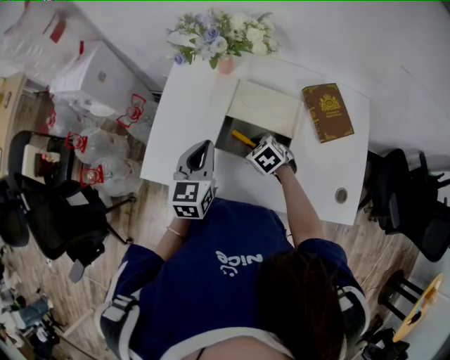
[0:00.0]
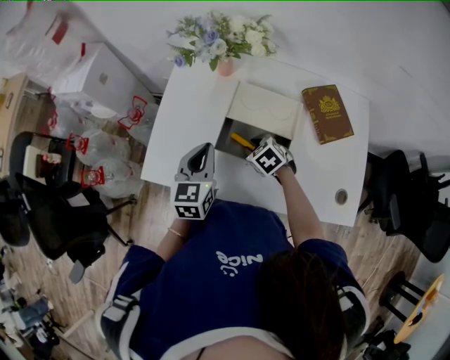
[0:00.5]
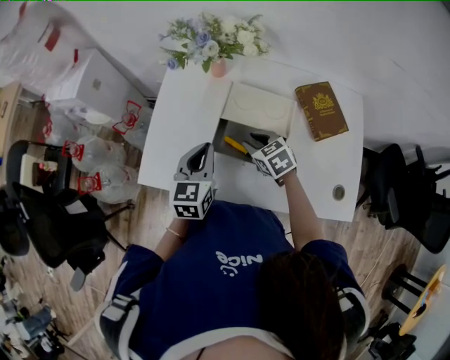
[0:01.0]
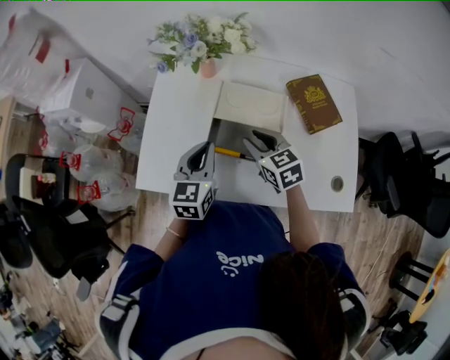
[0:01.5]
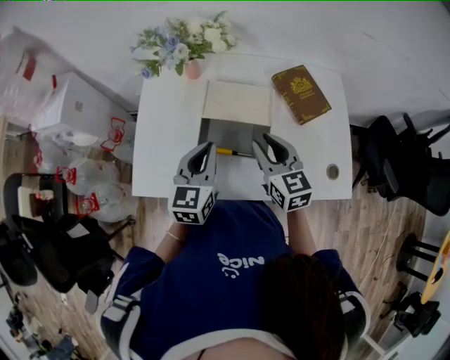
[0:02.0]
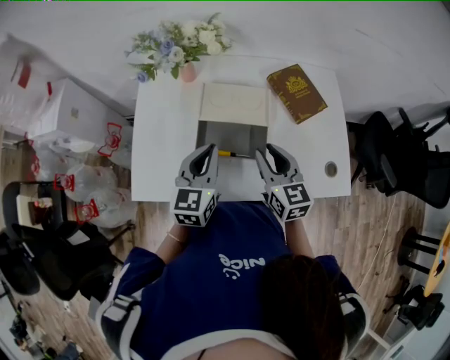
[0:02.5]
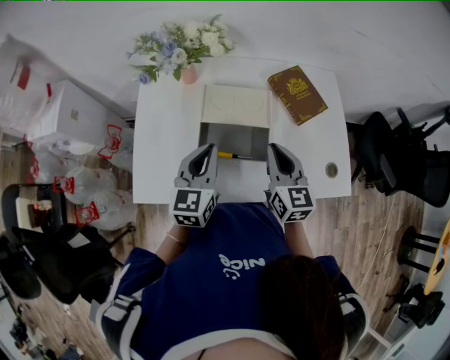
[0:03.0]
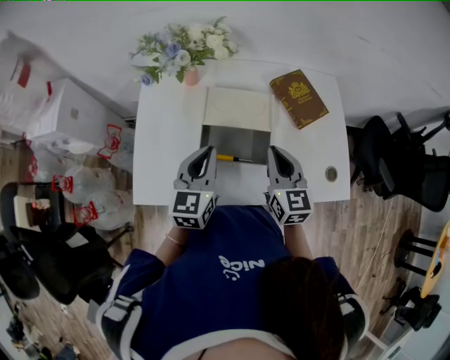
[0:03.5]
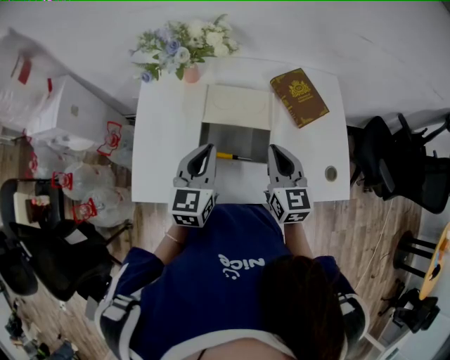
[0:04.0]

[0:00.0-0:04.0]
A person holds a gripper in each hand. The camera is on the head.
0:00.0 to 0:02.0: The left gripper travels to the right by roughly 5 cm, while the right gripper heads upward, covering roughly 20 cm, and points its fingers some 40 degrees further upward.
0:02.0 to 0:04.0: The right gripper closes.

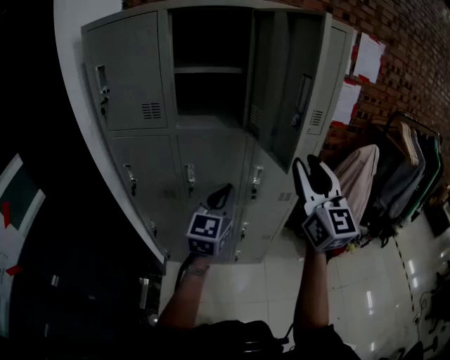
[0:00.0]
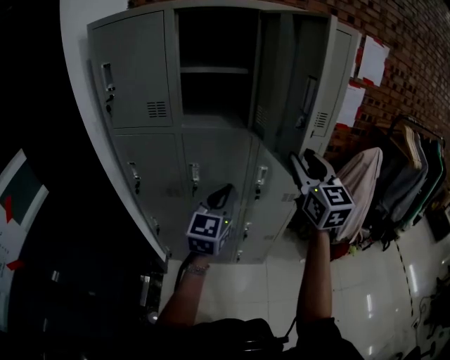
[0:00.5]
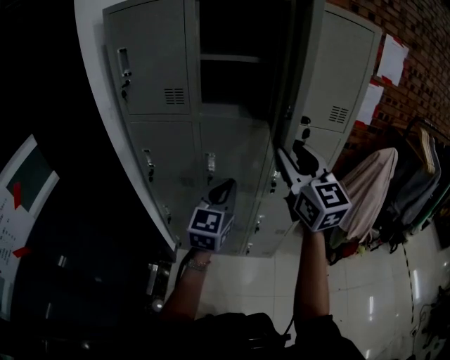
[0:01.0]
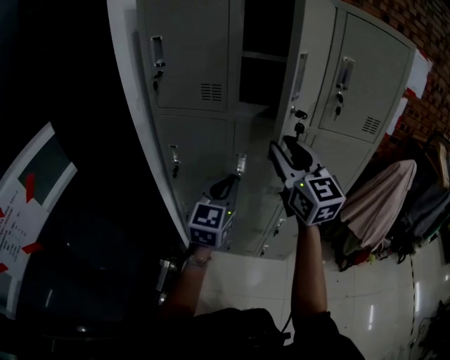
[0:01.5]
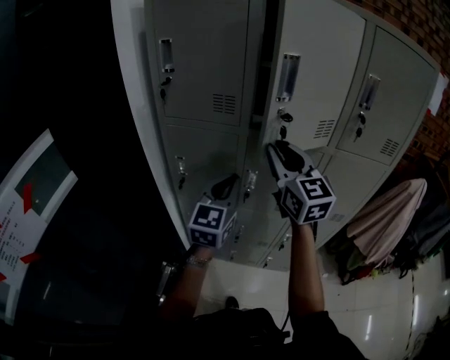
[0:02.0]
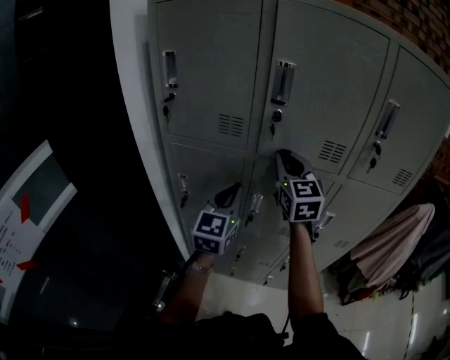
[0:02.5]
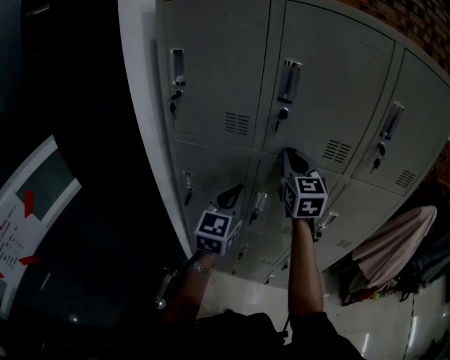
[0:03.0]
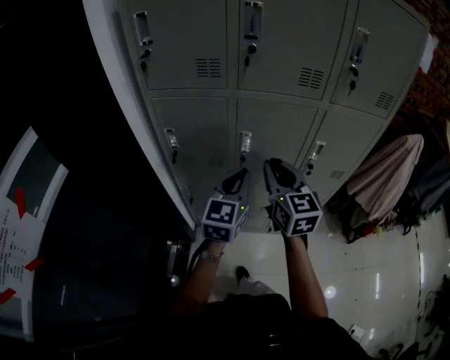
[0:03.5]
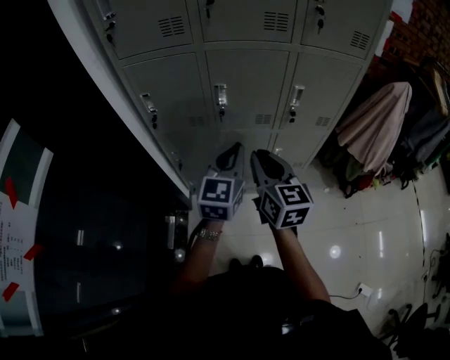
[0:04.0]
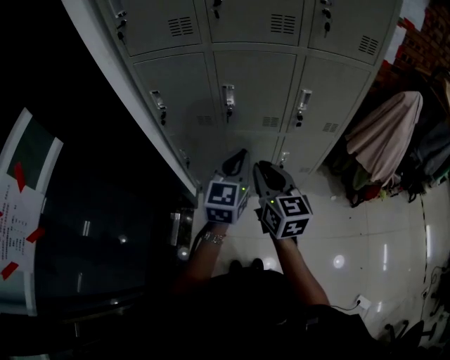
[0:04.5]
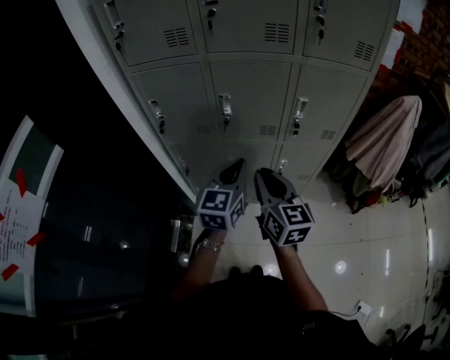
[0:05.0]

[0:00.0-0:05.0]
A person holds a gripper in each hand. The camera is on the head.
0:00.0 to 0:02.5: The left gripper goes approximately 25 cm to the left and forward, while the right gripper goes roughly 40 cm forward and to the left, swivels about 20 degrees, and closes.
0:02.5 to 0:05.0: The right gripper travels backward and downward by roughly 35 cm, and changes its angle by approximately 30 degrees. The left gripper moves backward, downward and to the right, some 25 cm.

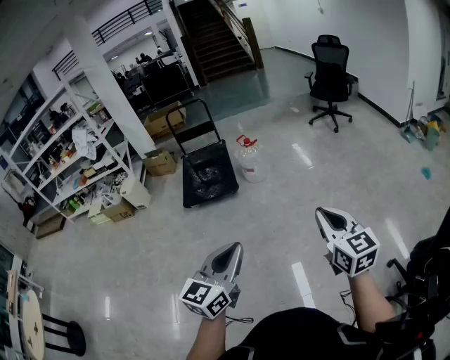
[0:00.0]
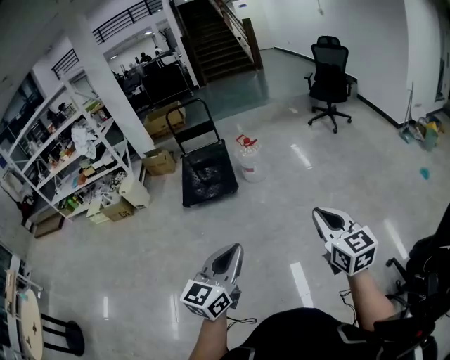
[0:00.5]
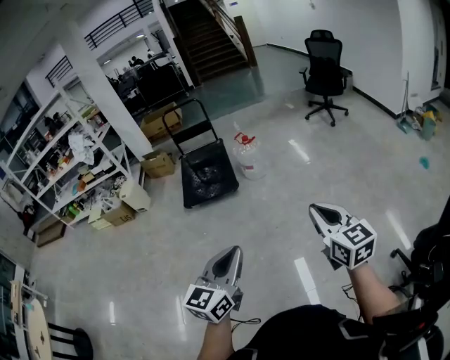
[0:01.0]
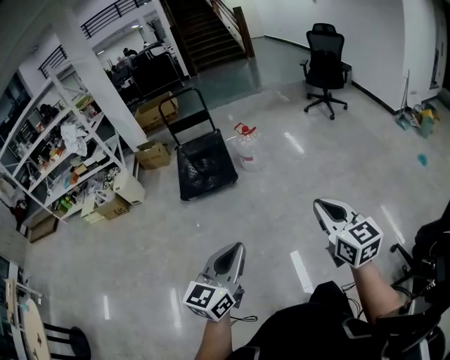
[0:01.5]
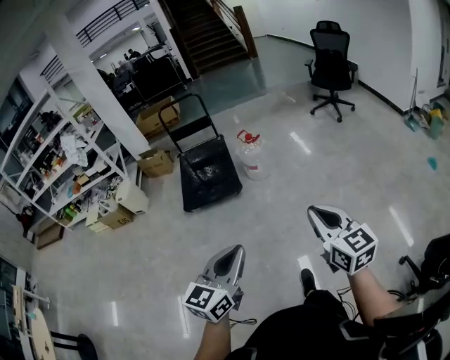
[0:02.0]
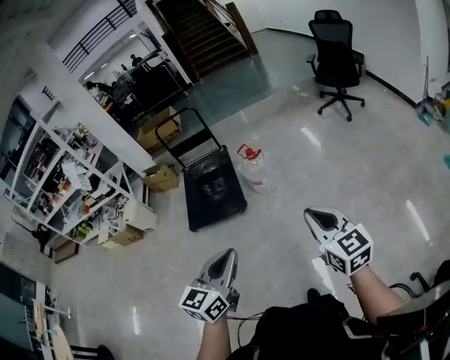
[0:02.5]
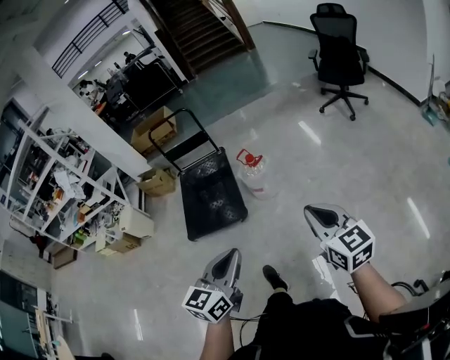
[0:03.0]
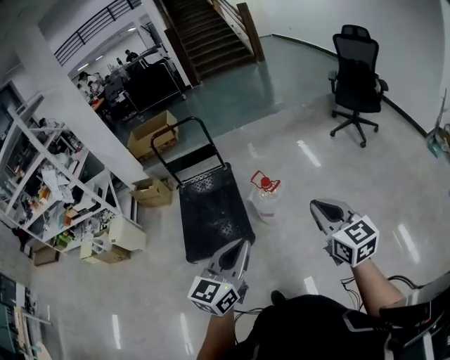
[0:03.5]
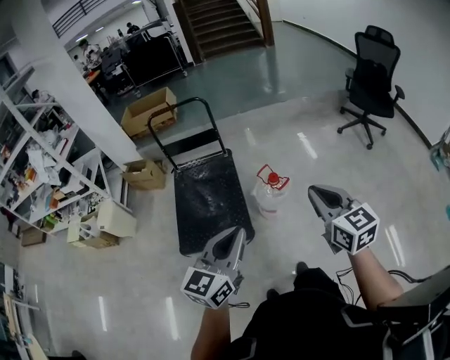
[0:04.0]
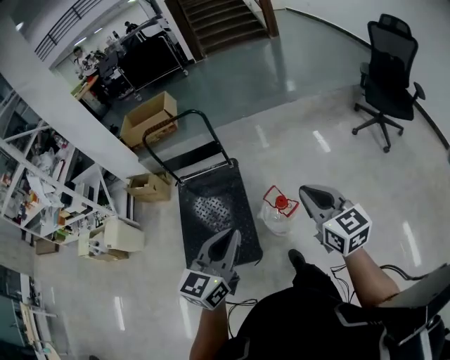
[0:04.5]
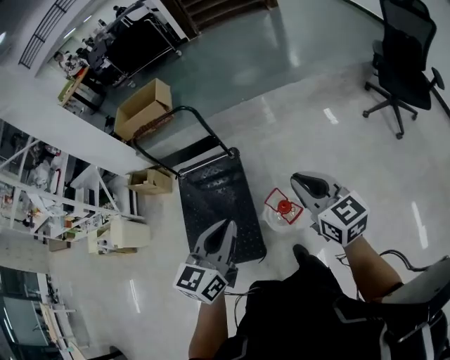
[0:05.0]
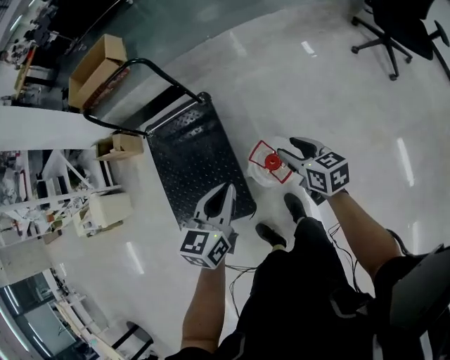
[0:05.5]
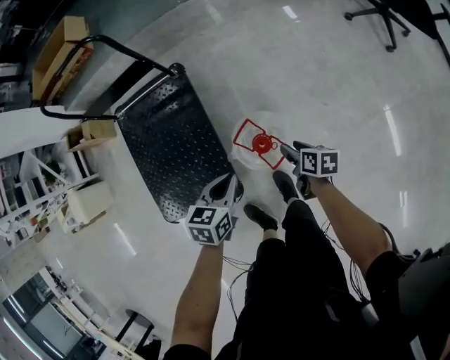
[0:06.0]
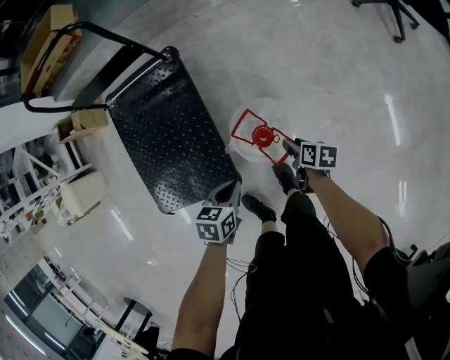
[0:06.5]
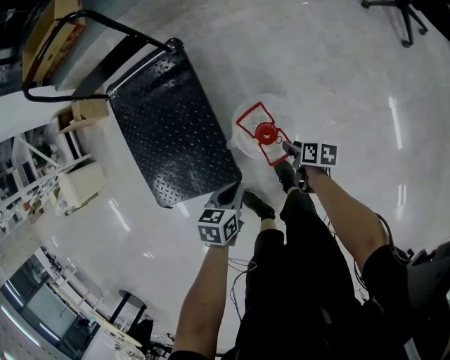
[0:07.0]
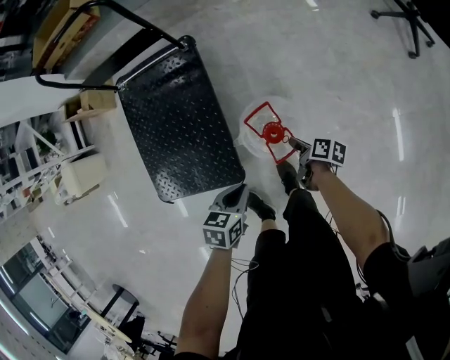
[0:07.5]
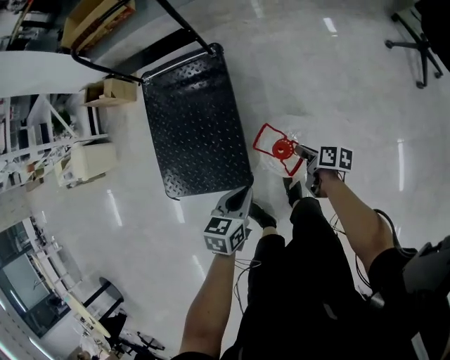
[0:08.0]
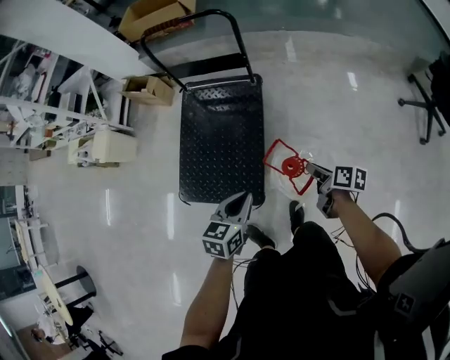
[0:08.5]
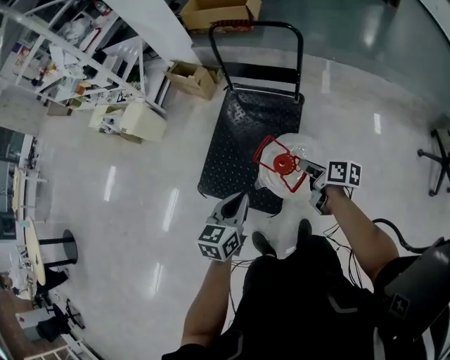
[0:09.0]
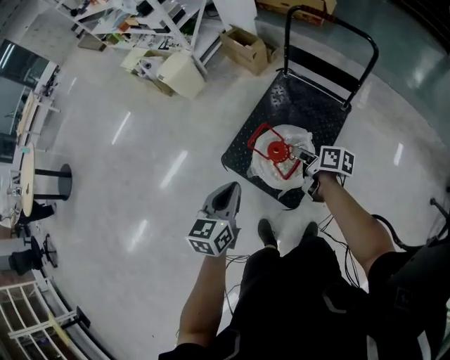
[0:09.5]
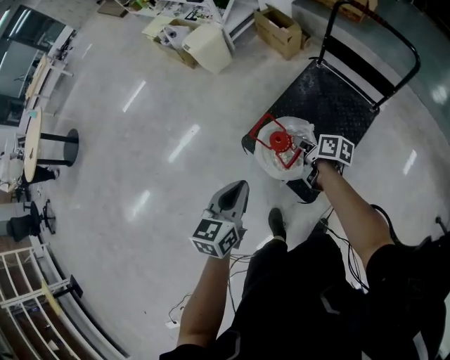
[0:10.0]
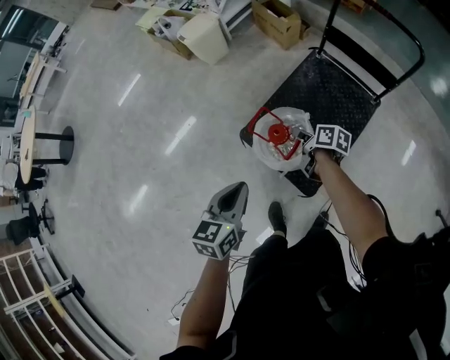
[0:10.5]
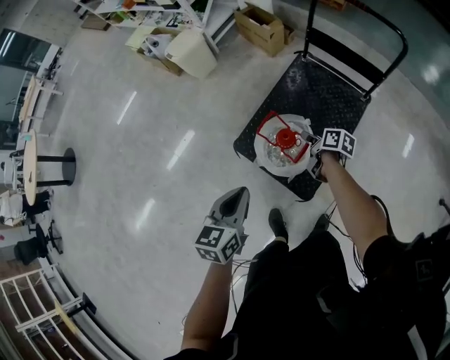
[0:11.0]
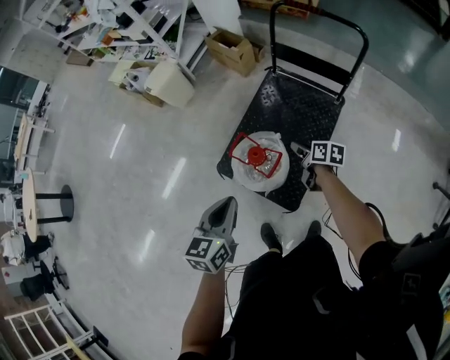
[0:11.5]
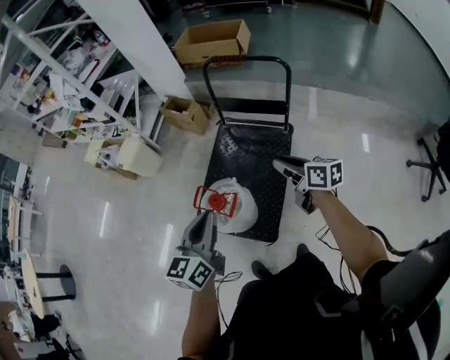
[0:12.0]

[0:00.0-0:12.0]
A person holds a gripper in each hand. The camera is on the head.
0:00.0 to 0:02.0: Both grippers travel together forward and to the left, about 15 cm.
0:02.0 to 0:04.0: The pair of grippers is taken forward, roughly 70 cm.
0:04.0 to 0:06.0: The pair of grippers is taken forward, some 40 cm. The two grippers go approximately 50 cm downward. The right gripper tips its fingers downward by some 40 degrees, and opens its fingers; the left gripper angles its fingers downward, by some 40 degrees.
0:06.0 to 0:08.0: The left gripper is displaced backward by approximately 10 cm, and travels downward and back again, about 10 cm each way. The right gripper moves to the left, some 5 cm, moves about 10 cm downward and comes back, and closes.
0:08.0 to 0:10.0: The pair of grippers is taken roughly 50 cm. The right gripper rotates some 50 degrees. Meanwhile the left gripper turns by about 60 degrees.
0:10.0 to 0:12.0: The two grippers go approximately 30 cm to the right and upward. The left gripper changes its angle by approximately 20 degrees. The right gripper swivels approximately 30 degrees.

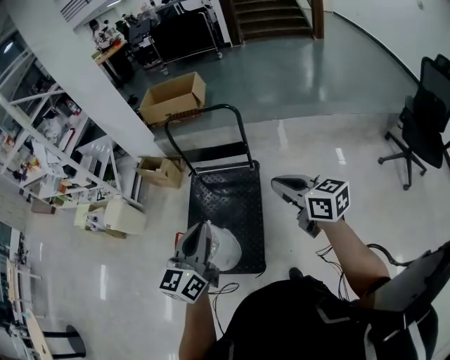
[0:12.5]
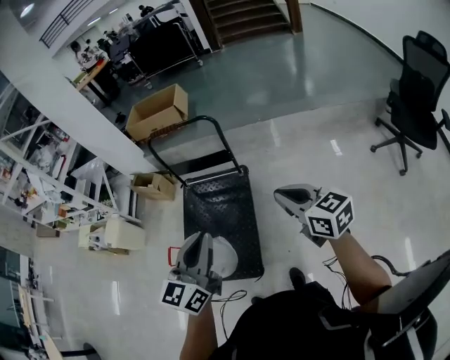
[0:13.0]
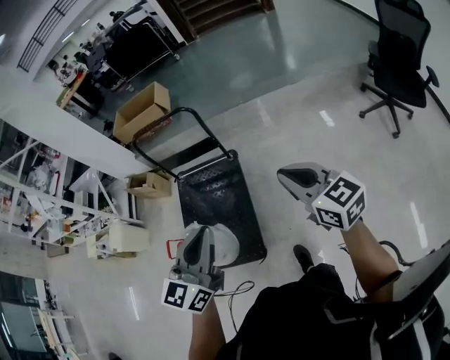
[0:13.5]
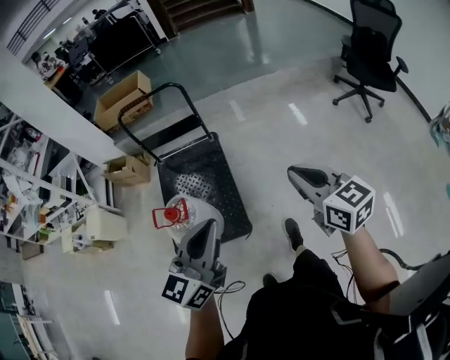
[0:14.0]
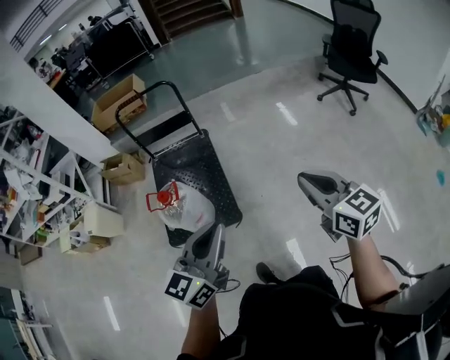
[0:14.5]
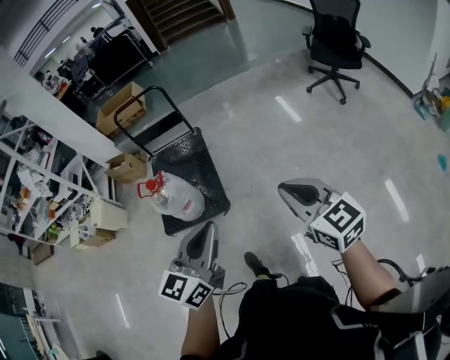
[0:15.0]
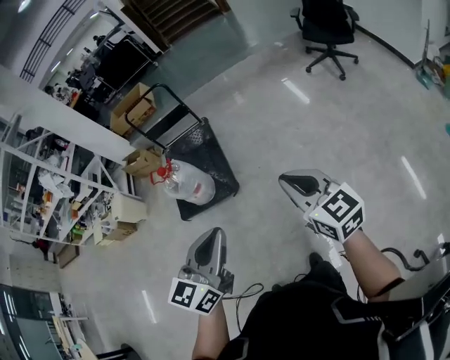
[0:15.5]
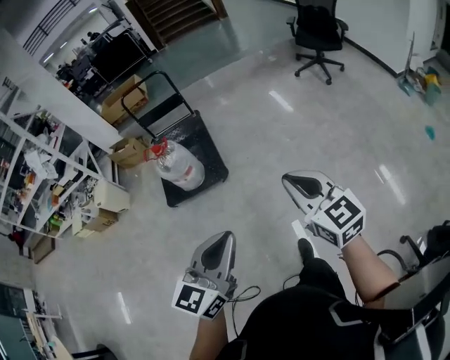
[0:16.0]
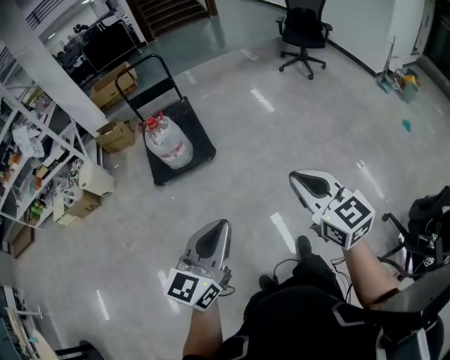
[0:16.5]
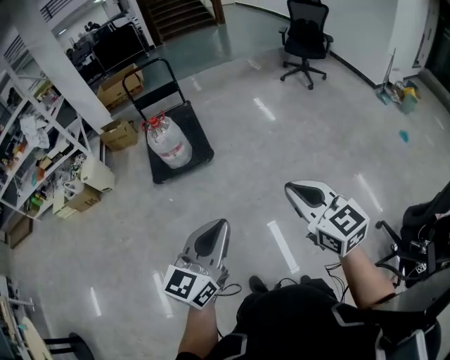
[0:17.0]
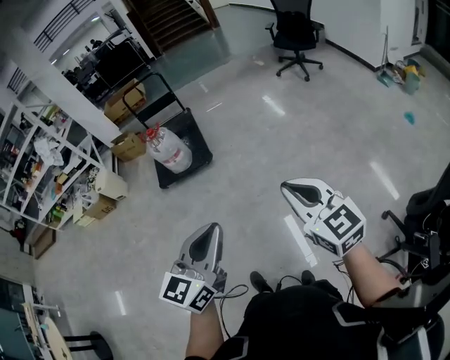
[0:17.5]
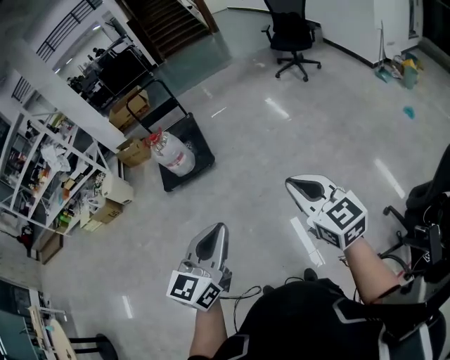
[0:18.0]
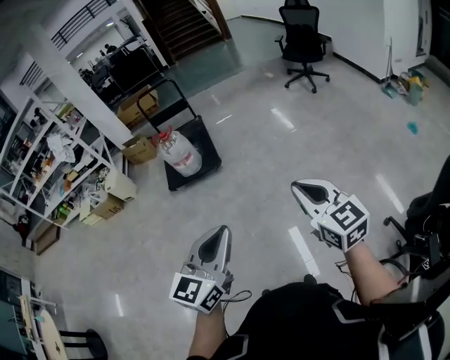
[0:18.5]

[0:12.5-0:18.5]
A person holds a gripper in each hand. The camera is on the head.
0:12.5 to 0:14.5: The right gripper ends up approximately 40 cm from where it was, and changes its angle by approximately 30 degrees, while the left gripper moves roughly 35 cm, and turns by about 30 degrees.
0:14.5 to 0:16.5: The pair of grippers is taken backward, approximately 60 cm.
0:16.5 to 0:18.5: The grippers both shift backward and to the right by some 25 cm.
